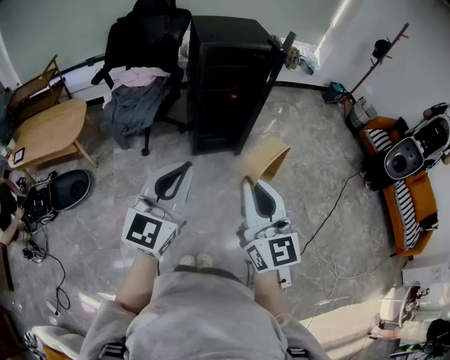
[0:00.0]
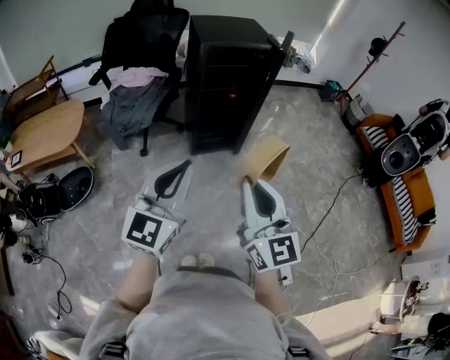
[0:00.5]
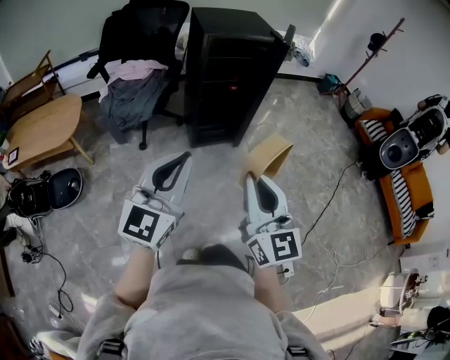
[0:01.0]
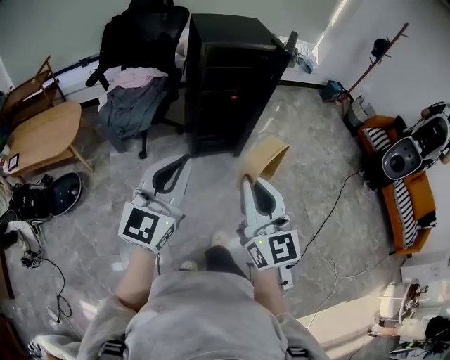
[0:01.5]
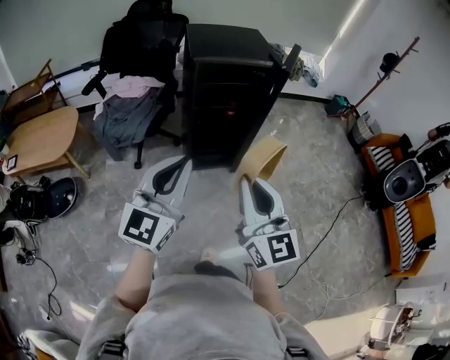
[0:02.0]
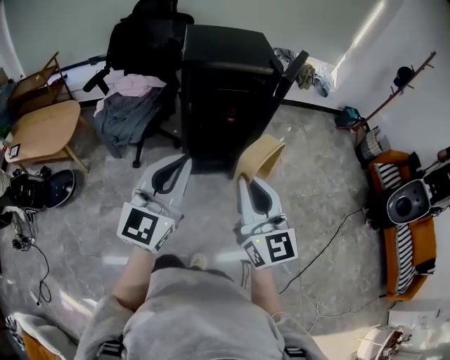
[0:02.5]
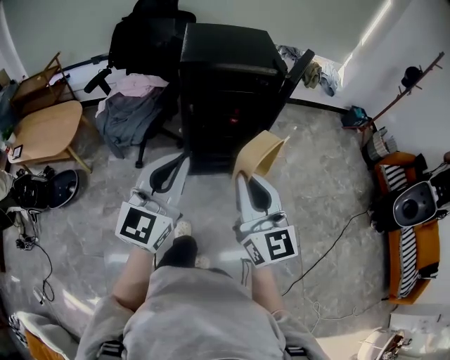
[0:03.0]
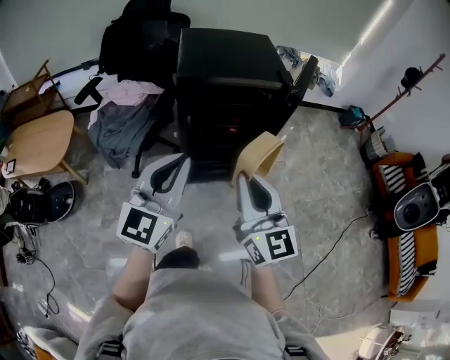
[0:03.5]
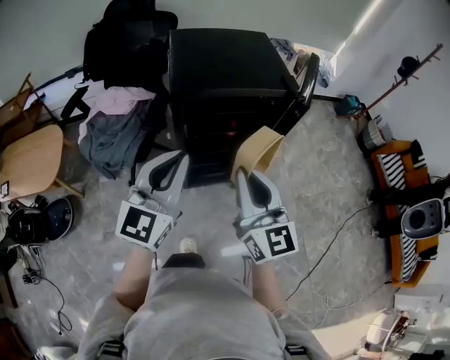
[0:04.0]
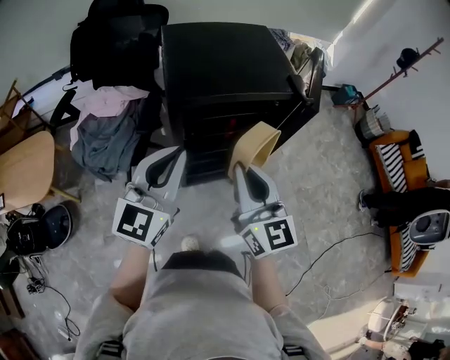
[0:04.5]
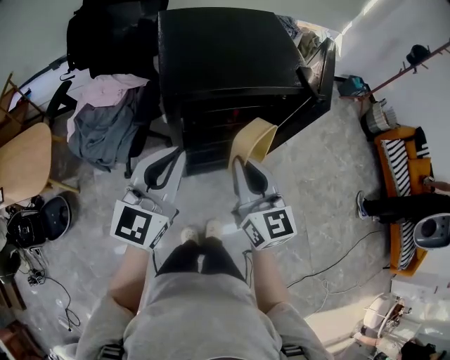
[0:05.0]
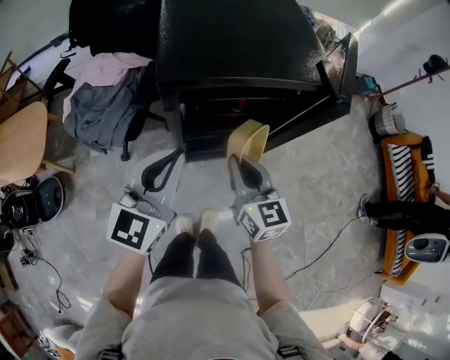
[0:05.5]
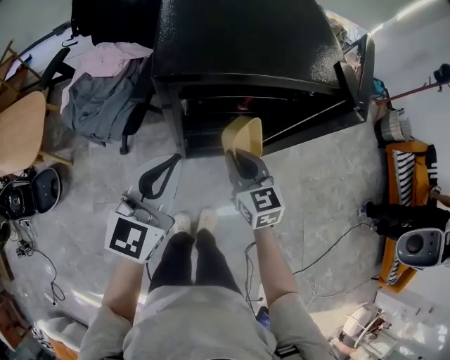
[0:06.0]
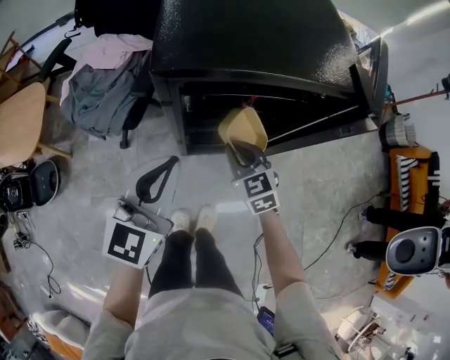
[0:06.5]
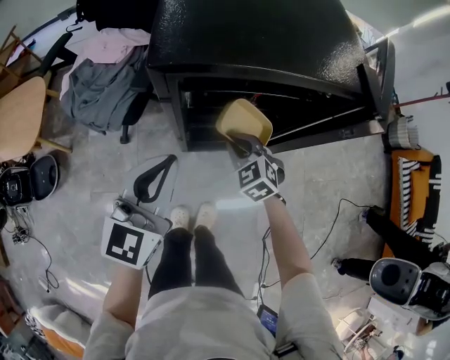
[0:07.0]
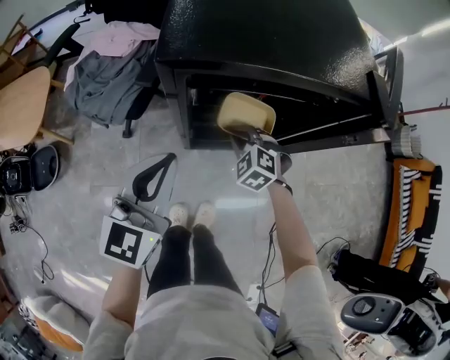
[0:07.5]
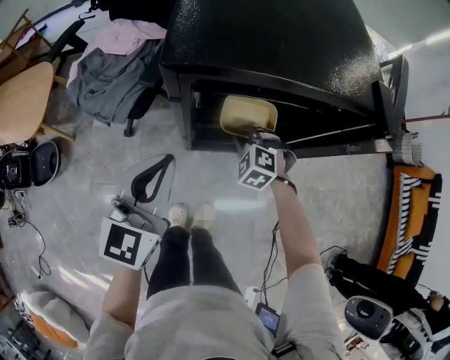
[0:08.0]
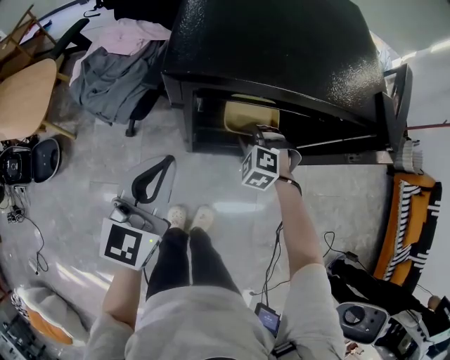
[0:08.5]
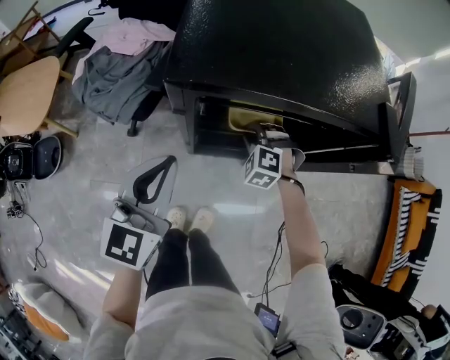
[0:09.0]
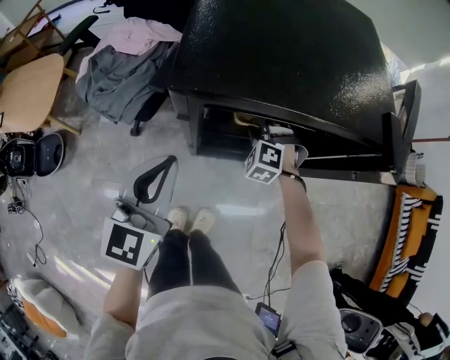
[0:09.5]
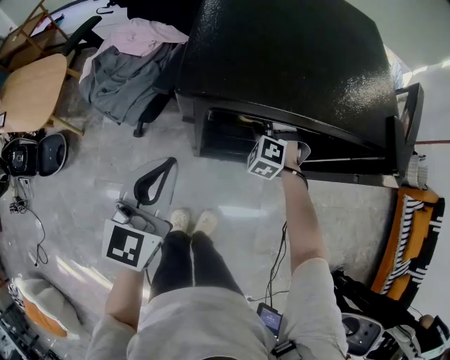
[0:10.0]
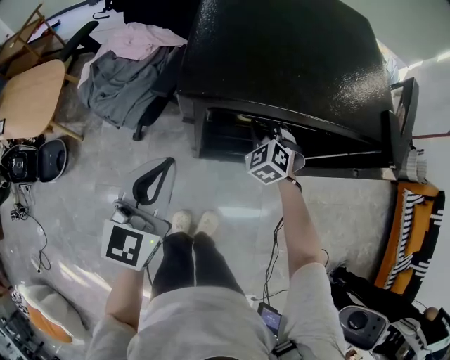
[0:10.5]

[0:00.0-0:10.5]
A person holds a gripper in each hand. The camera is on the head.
0:00.0 to 0:02.0: Both grippers move forward, about 15 cm.
0:02.0 to 0:04.0: Both grippers move forward, roughly 30 cm.
0:04.0 to 0:06.5: The right gripper goes some 40 cm downward and forward, and angles its fingers downward, by about 40 degrees, while the left gripper heads downward and forward, covering some 20 cm.
0:06.5 to 0:08.5: The right gripper goes about 10 cm downward and forward, and rotates around the line of its fingers by roughly 50 degrees, counterclockwise from behind.
0:08.5 to 0:10.5: The right gripper goes roughly 5 cm forward, and turns by roughly 20 degrees.

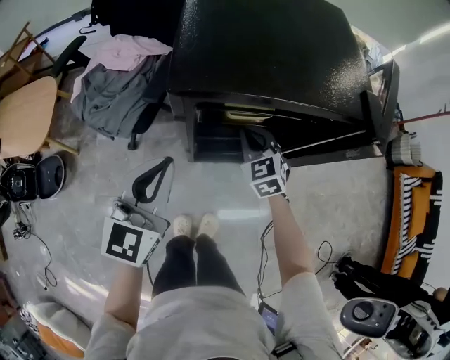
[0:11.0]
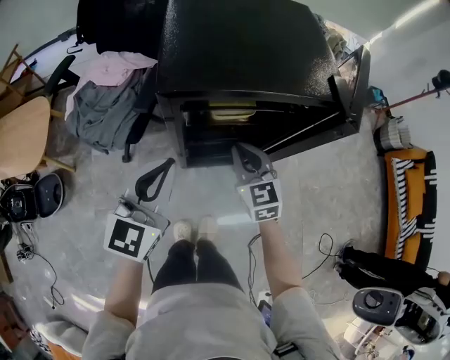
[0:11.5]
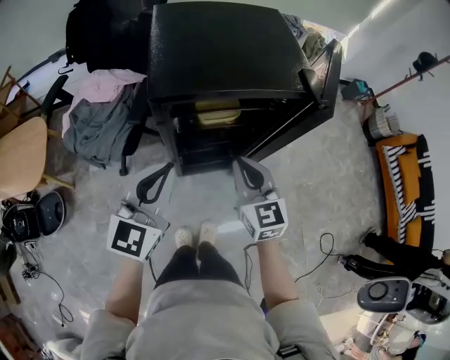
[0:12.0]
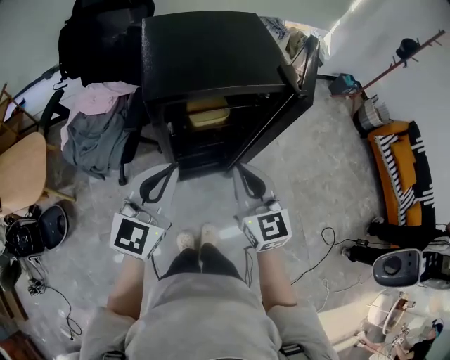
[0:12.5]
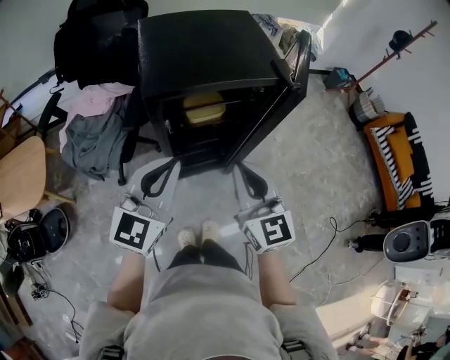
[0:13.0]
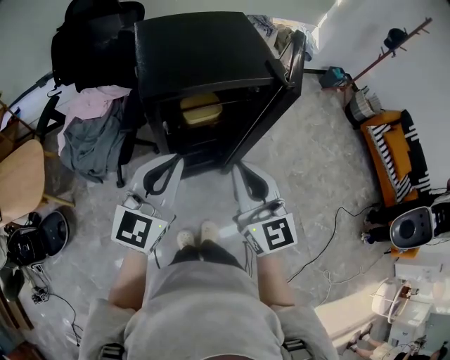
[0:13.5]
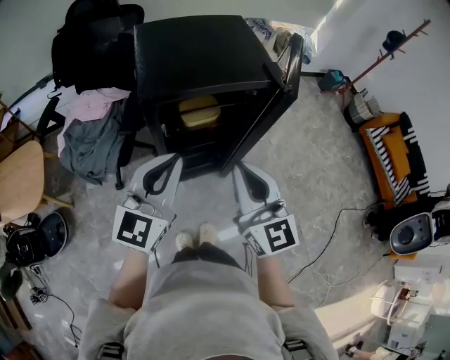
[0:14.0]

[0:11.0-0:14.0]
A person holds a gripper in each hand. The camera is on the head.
0:11.0 to 0:12.5: The left gripper travels upward, backward and to the right by roughly 15 cm. The right gripper shifts some 30 cm upward and backward, and swivels about 30 degrees.
0:12.5 to 0:14.0: The right gripper goes approximately 10 cm upward.

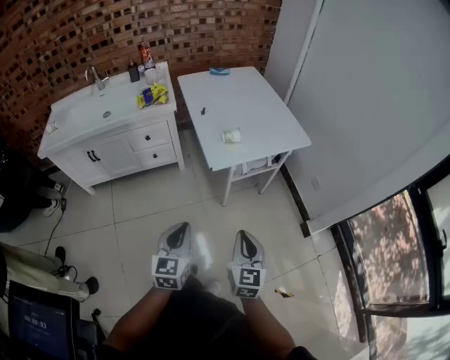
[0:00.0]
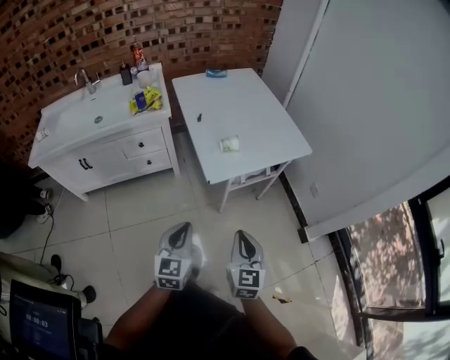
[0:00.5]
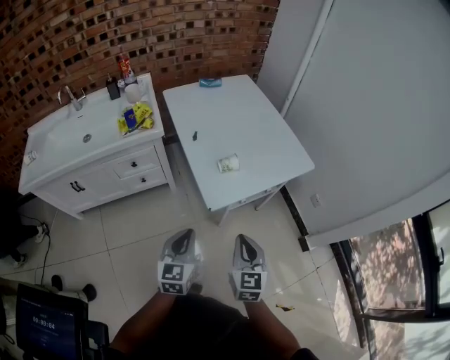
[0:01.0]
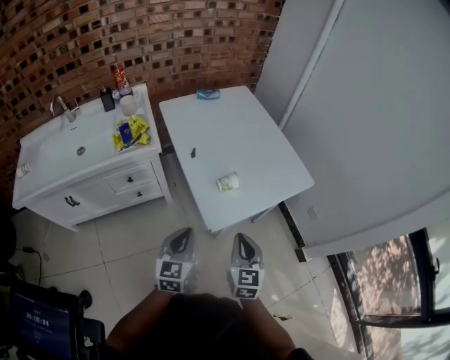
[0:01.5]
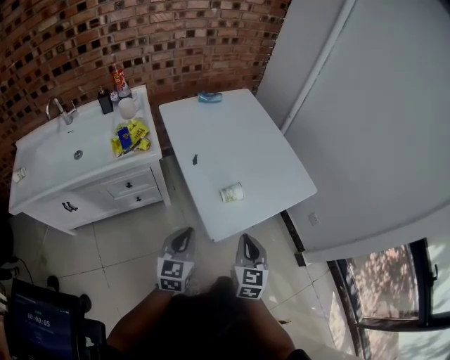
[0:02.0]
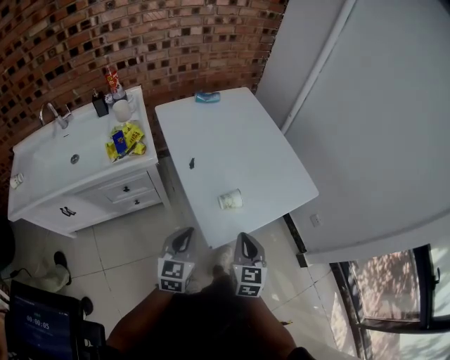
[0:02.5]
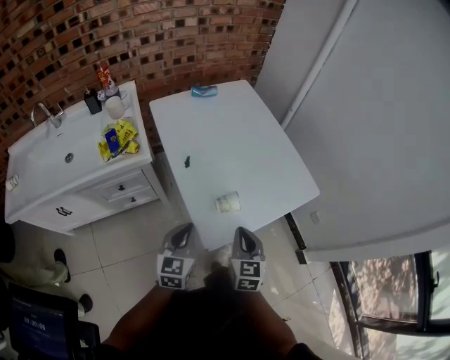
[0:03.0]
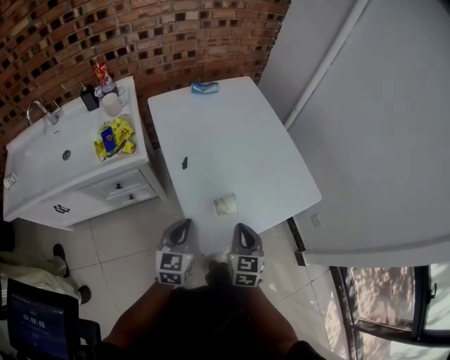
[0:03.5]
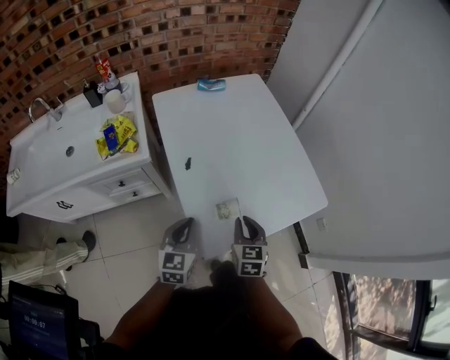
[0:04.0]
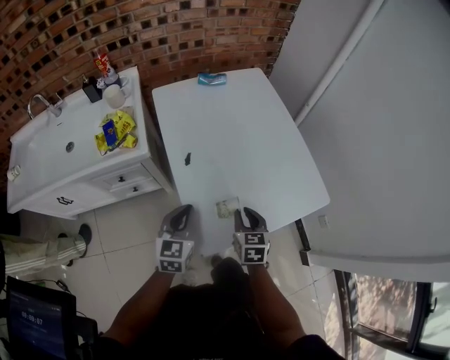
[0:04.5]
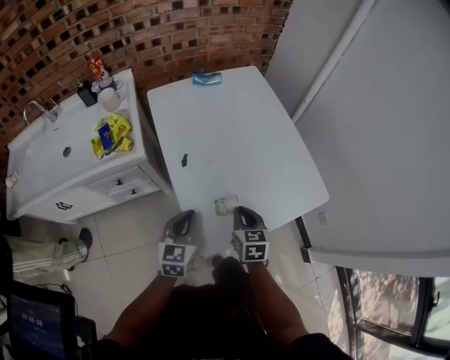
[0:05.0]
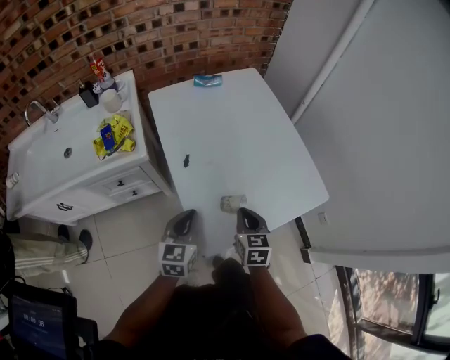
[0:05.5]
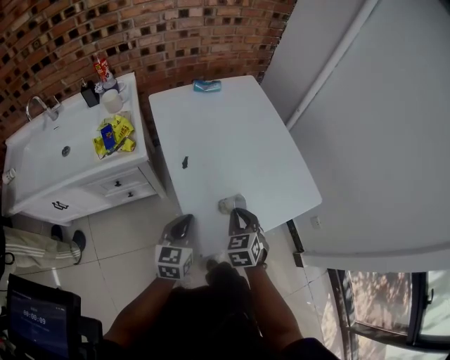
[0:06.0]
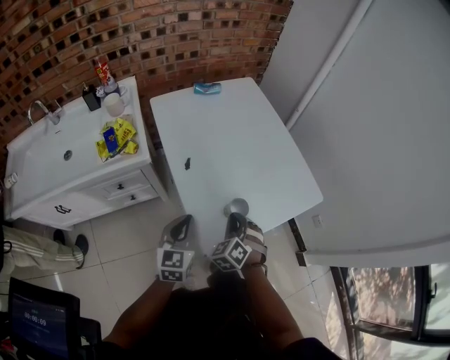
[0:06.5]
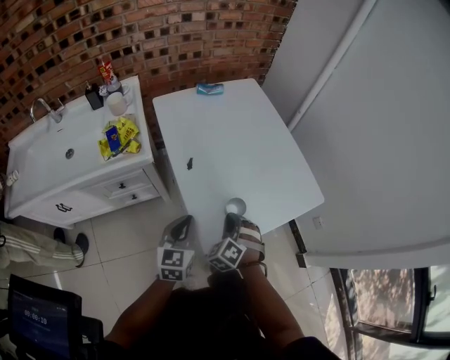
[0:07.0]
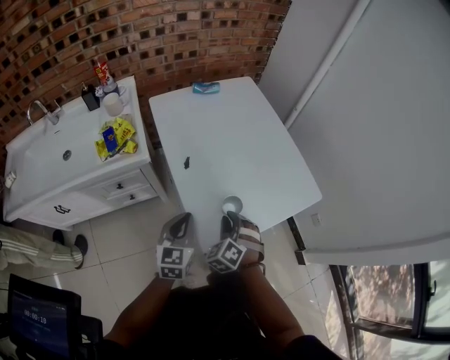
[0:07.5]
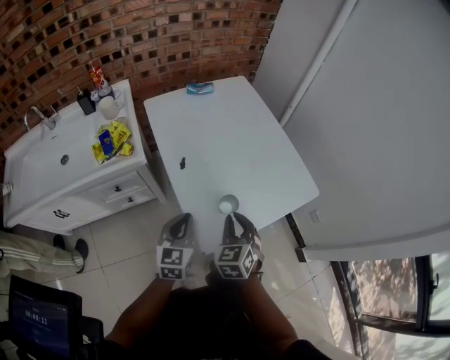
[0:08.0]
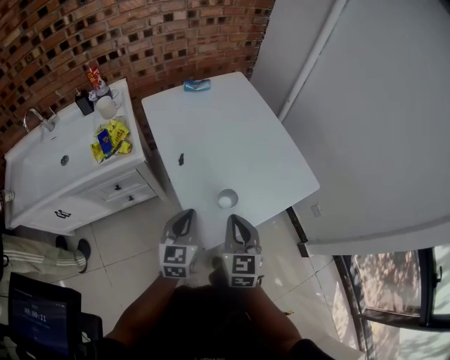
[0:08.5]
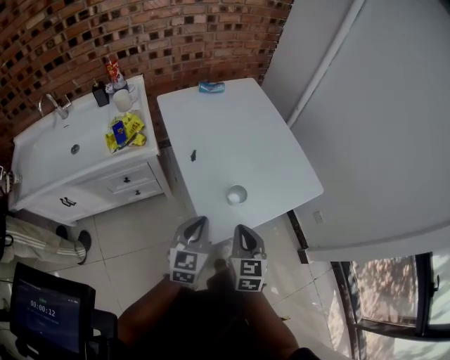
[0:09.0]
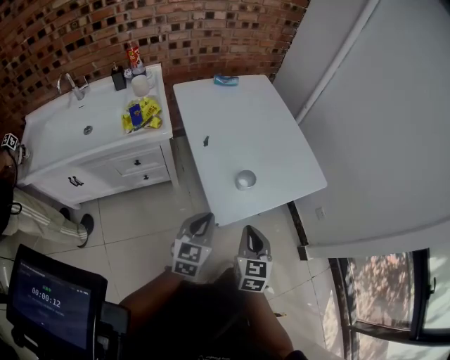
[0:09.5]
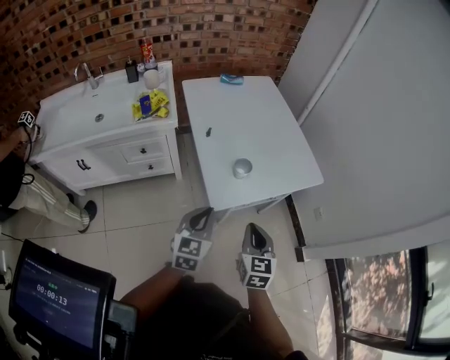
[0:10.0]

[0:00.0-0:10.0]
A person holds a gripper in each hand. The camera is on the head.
0:00.0 to 0:02.0: Both grippers travel together forward, approximately 30 cm.
0:02.0 to 0:04.0: The right gripper moves forward and downward, approximately 15 cm, while the left gripper is displaced forward by some 10 cm.
0:04.0 to 0:06.0: The right gripper turns by approximately 20 degrees.
0:06.0 to 0:08.0: The right gripper moves approximately 5 cm.
0:08.0 to 0:10.0: Both grippers move backward, some 20 cm. The right gripper turns by roughly 20 degrees.

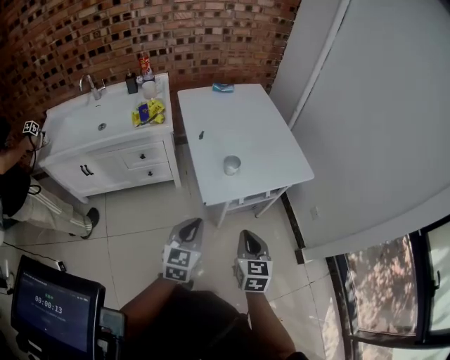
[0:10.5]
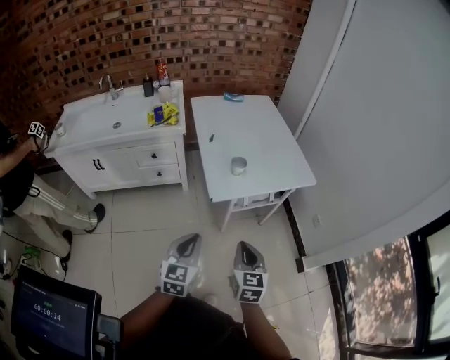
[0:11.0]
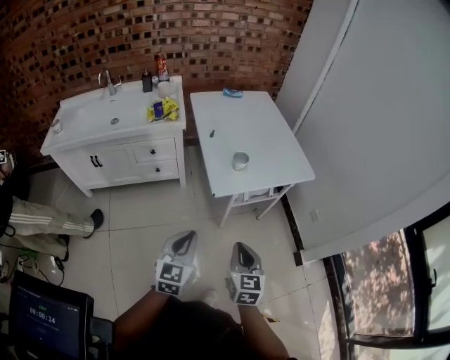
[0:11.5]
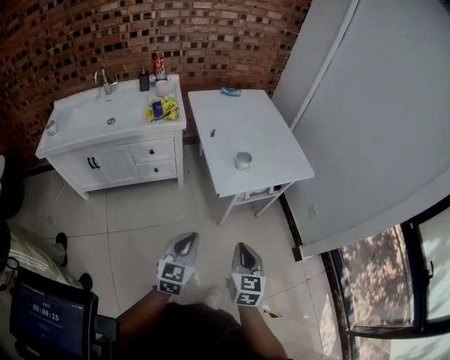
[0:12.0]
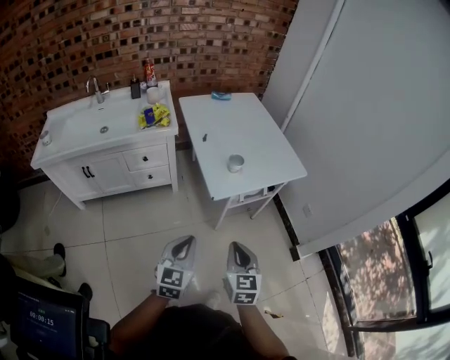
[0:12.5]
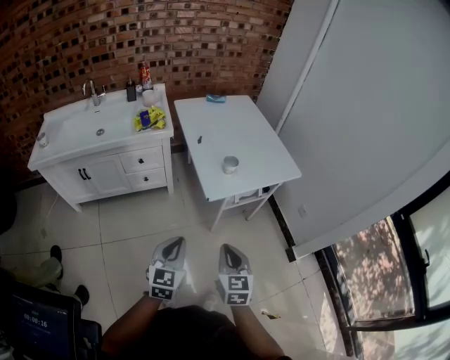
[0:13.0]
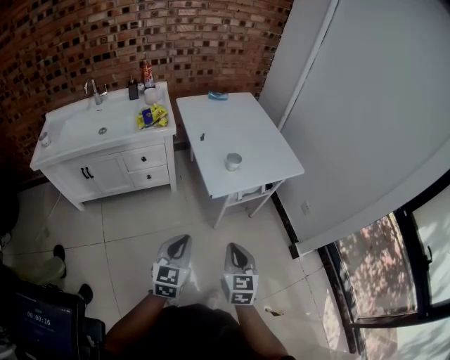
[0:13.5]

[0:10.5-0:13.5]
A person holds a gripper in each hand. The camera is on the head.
0:10.5 to 0:12.0: Both grippers move backward and to the left, some 15 cm.
0:12.0 to 0:13.5: The grippers stay close to where they were, moving slightly.
